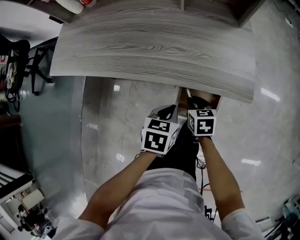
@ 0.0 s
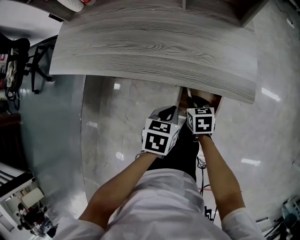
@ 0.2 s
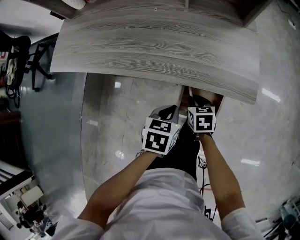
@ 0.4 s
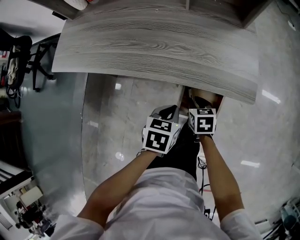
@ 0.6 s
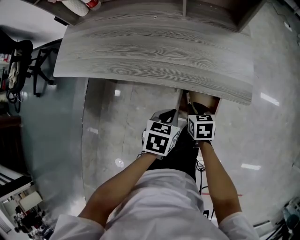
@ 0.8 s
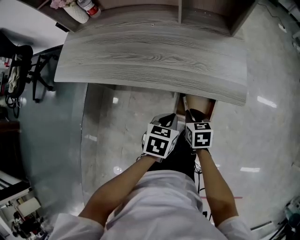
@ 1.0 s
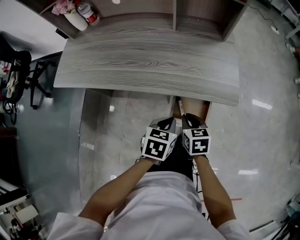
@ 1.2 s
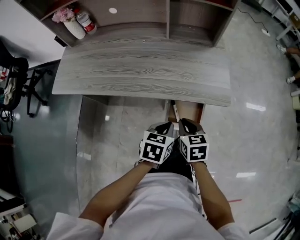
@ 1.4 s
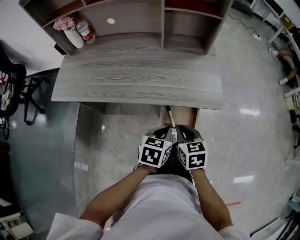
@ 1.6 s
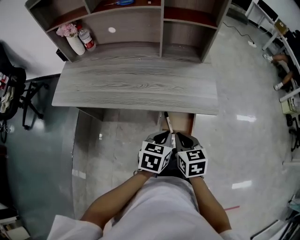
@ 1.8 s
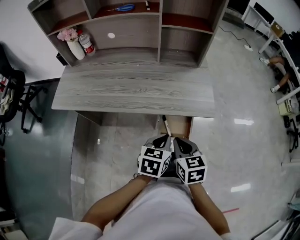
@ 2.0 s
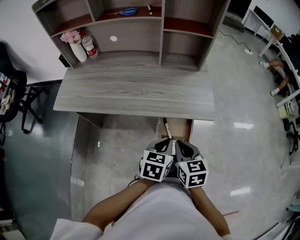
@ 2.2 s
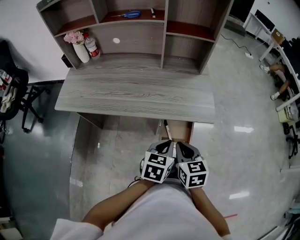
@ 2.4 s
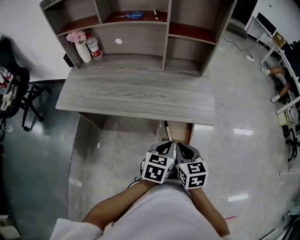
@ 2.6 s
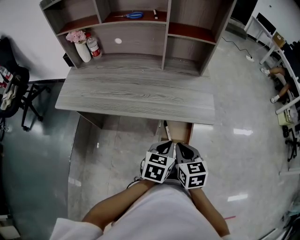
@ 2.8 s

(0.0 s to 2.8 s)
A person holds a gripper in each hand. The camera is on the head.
0.0 s - 1.4 s: The left gripper shifts by approximately 5 cm. Meanwhile the right gripper shifts some 10 cm upward and backward.
1.4 s - 2.8 s: The right gripper shifts some 10 cm upward and backward. Meanwhile the left gripper goes approximately 10 cm upward.

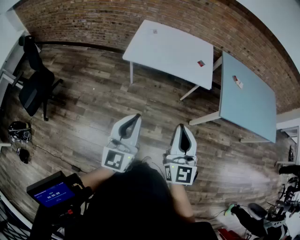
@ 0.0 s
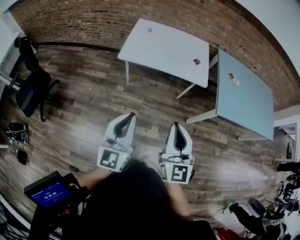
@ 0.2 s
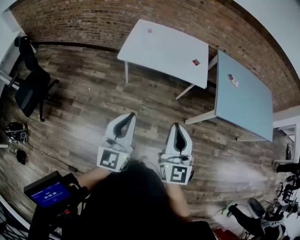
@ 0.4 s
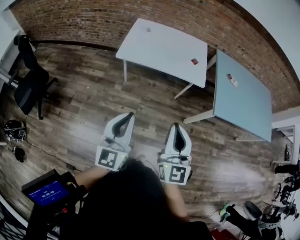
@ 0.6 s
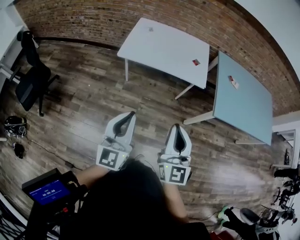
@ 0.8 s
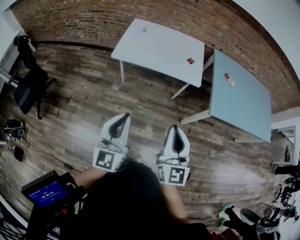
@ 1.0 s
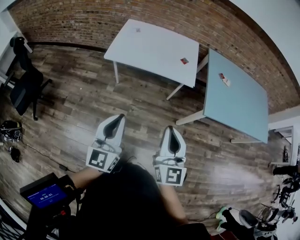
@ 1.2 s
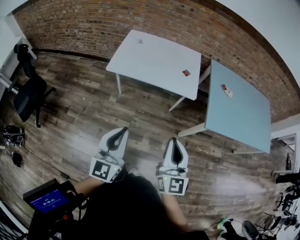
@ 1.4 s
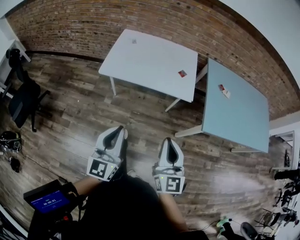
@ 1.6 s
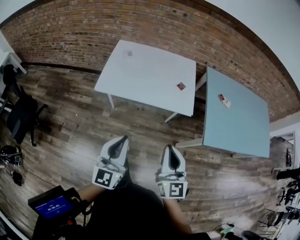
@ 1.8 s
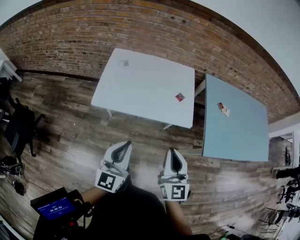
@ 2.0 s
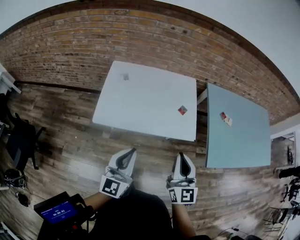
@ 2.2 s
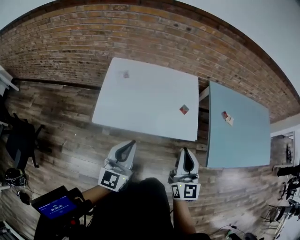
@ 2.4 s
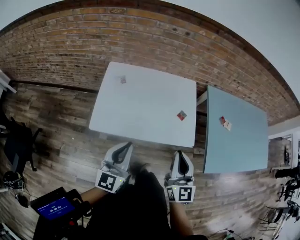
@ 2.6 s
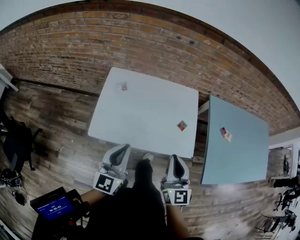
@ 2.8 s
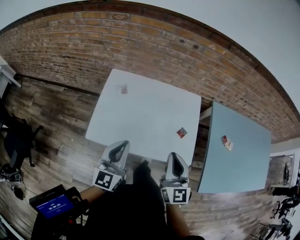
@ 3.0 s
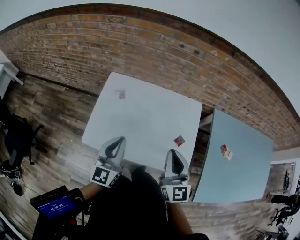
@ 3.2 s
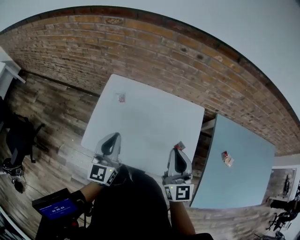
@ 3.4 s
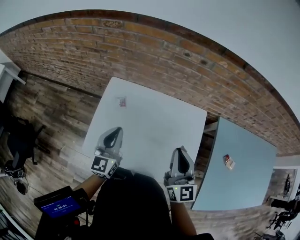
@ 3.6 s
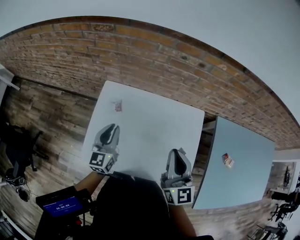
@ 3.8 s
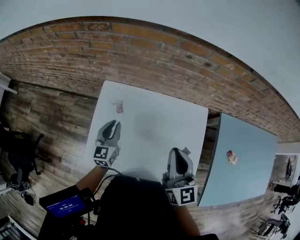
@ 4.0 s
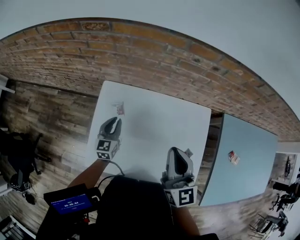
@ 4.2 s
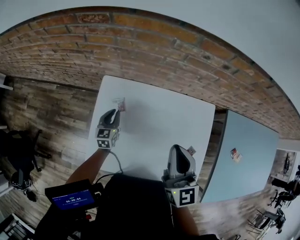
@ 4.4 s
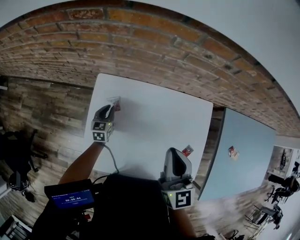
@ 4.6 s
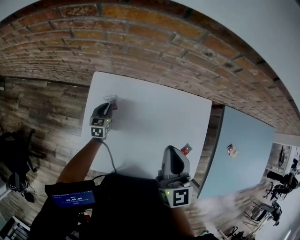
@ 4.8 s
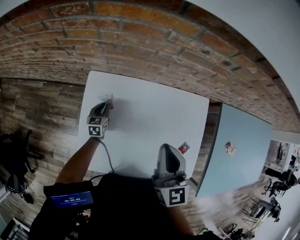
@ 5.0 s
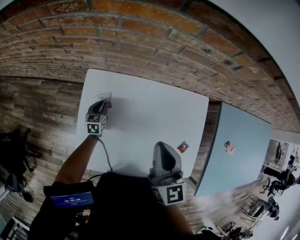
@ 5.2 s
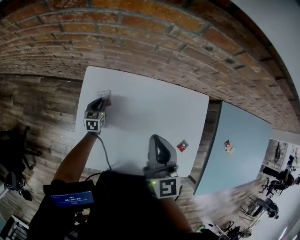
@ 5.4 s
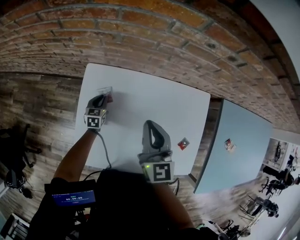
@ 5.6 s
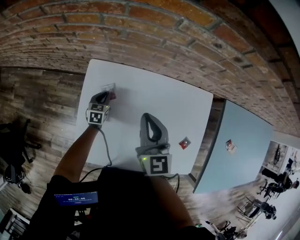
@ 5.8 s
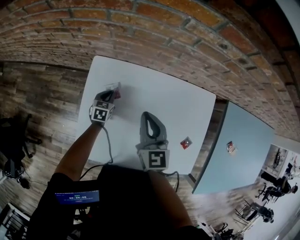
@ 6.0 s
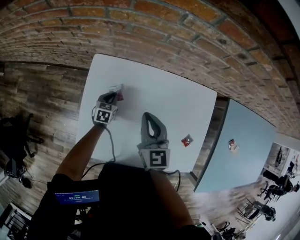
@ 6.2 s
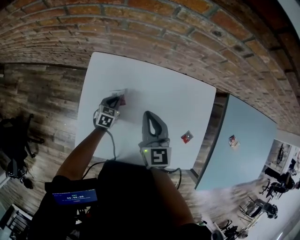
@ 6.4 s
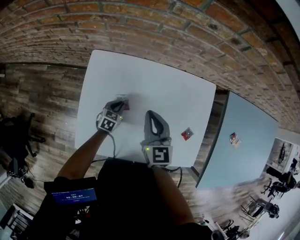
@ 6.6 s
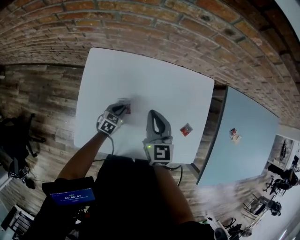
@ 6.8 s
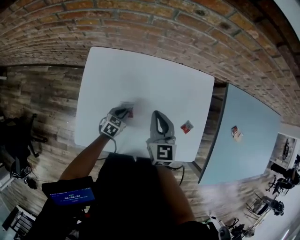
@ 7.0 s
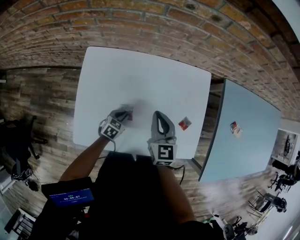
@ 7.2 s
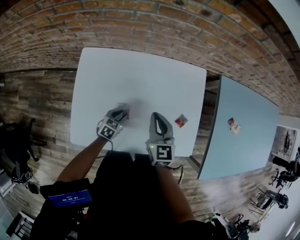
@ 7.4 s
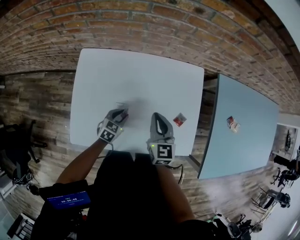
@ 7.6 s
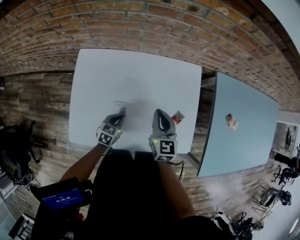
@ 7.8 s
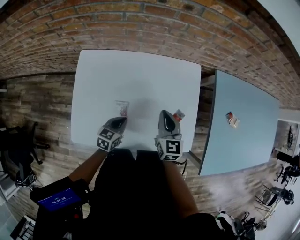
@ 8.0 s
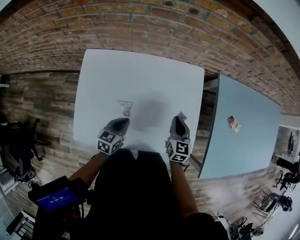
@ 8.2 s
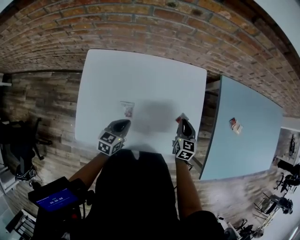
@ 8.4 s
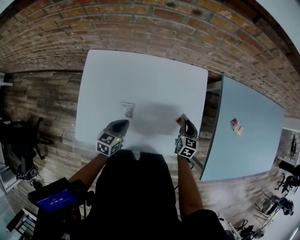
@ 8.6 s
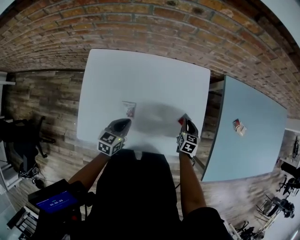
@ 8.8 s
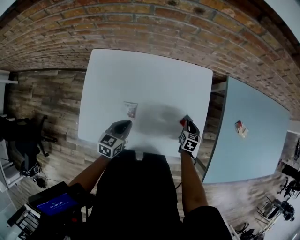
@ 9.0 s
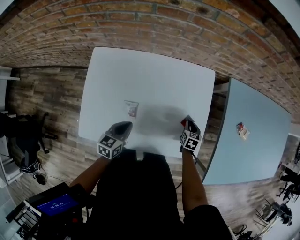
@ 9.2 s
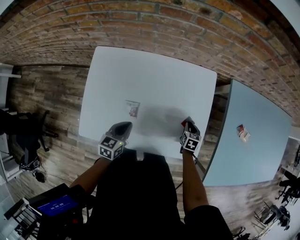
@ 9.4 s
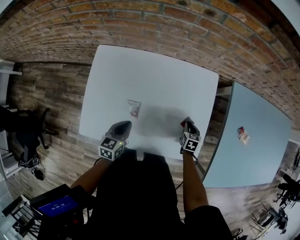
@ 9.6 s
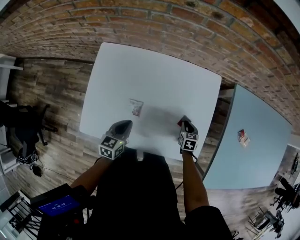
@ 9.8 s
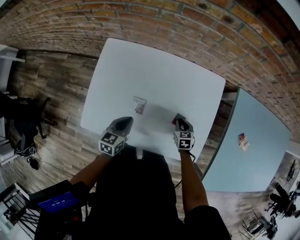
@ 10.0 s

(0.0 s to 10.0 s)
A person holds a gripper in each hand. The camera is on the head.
0.0 s - 1.4 s: The two grippers go about 10 cm to the right.
1.4 s - 2.8 s: The grippers both shift forward by approximately 40 cm.
2.8 s - 4.2 s: The left gripper travels forward and downward by roughly 40 cm, and changes its angle by approximately 20 degrees; the right gripper is displaced forward by about 30 cm.
4.2 s - 5.8 s: The right gripper moves downward, forward and to the left, roughly 15 cm. The left gripper heads downward, covering approximately 20 cm, and changes its angle by roughly 30 degrees.
5.8 s - 7.2 s: The left gripper moves backward and to the right, approximately 25 cm, and rotates about 30 degrees. The right gripper goes approximately 15 cm to the right, backward and downward.
7.2 s - 8.6 s: The right gripper travels to the right and downward by some 25 cm, and swivels roughly 20 degrees. The left gripper shifts approximately 15 cm upward, and swivels approximately 20 degrees.
8.6 s - 10.0 s: The right gripper is displaced downward and to the left by about 10 cm, and swivels roughly 30 degrees.

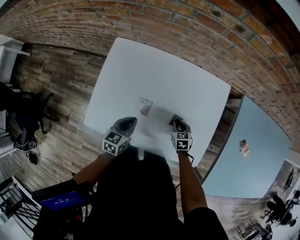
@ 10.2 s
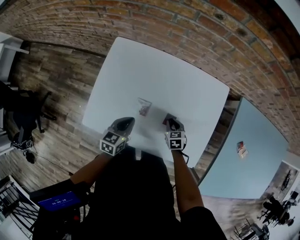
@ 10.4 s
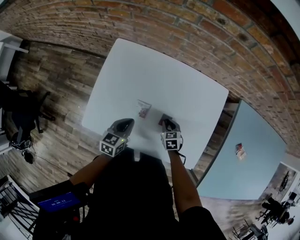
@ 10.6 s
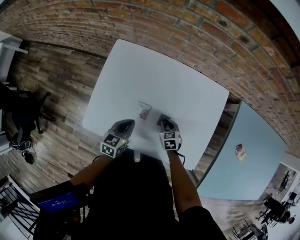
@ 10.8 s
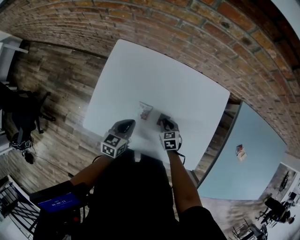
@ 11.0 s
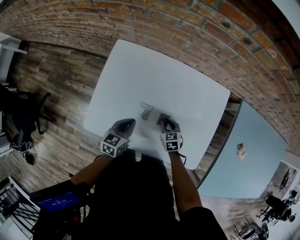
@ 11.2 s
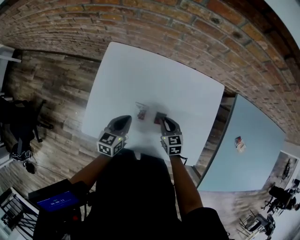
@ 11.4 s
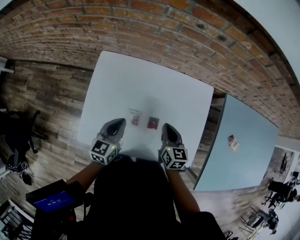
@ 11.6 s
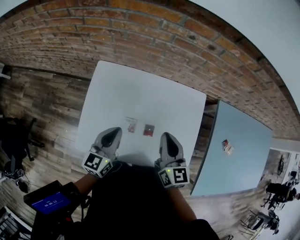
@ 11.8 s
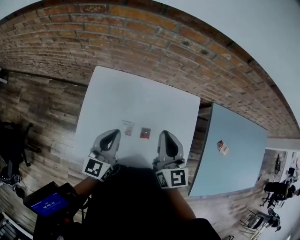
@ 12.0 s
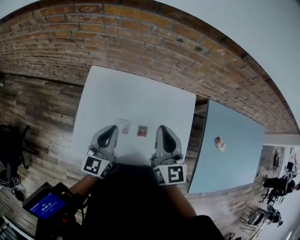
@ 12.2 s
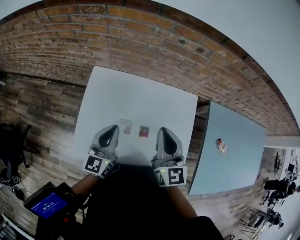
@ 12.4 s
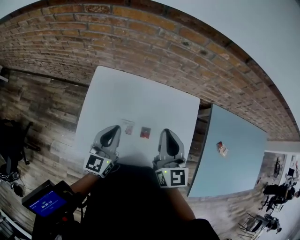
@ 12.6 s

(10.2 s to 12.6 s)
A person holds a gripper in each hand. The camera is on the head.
10.2 s - 11.4 s: The right gripper goes roughly 10 cm to the left and upward. Meanwhile the left gripper ends up roughly 5 cm from where it was.
11.4 s - 12.6 s: The left gripper heads upward, covering some 15 cm, and rotates some 30 degrees, while the right gripper shifts roughly 30 cm upward, and tilts its fingers roughly 40 degrees upward.

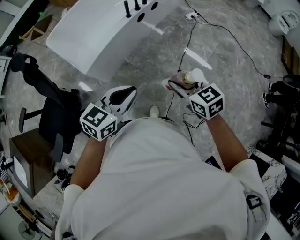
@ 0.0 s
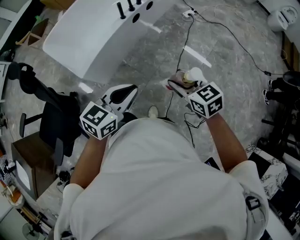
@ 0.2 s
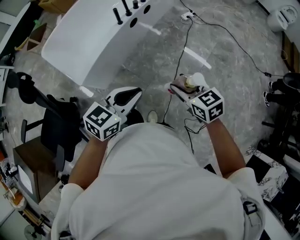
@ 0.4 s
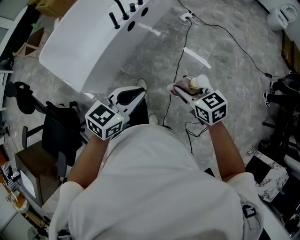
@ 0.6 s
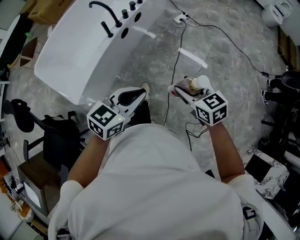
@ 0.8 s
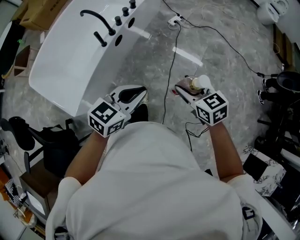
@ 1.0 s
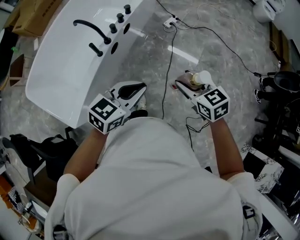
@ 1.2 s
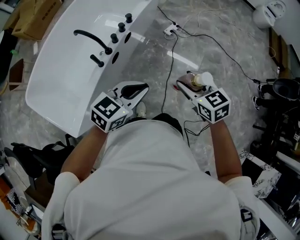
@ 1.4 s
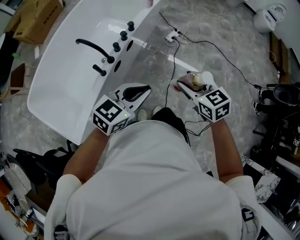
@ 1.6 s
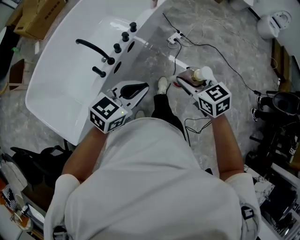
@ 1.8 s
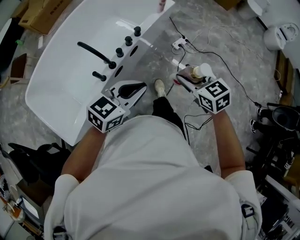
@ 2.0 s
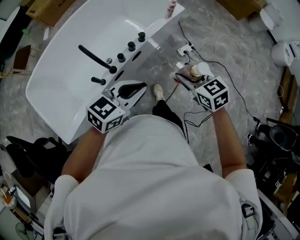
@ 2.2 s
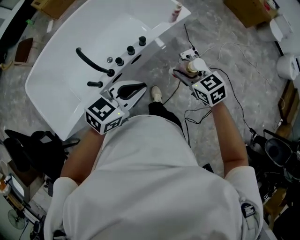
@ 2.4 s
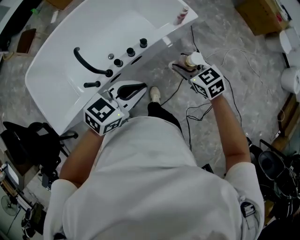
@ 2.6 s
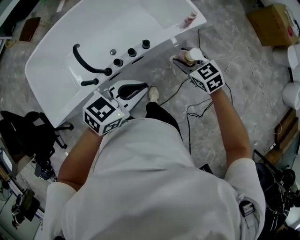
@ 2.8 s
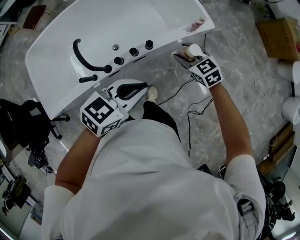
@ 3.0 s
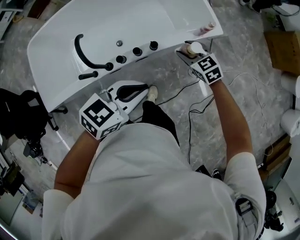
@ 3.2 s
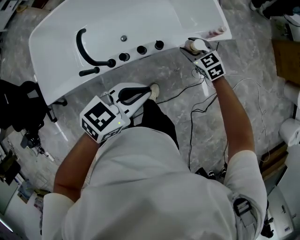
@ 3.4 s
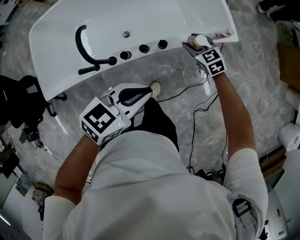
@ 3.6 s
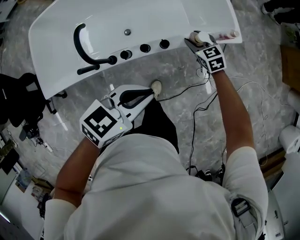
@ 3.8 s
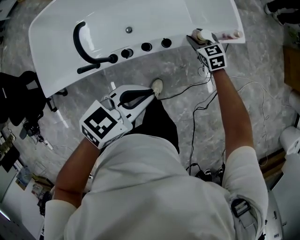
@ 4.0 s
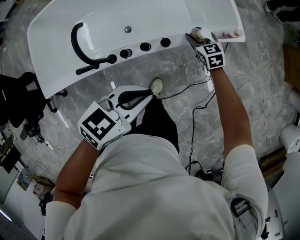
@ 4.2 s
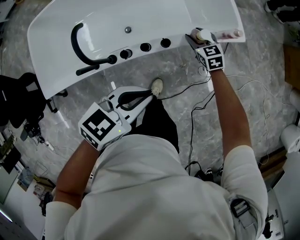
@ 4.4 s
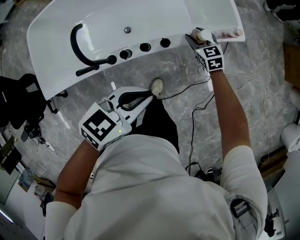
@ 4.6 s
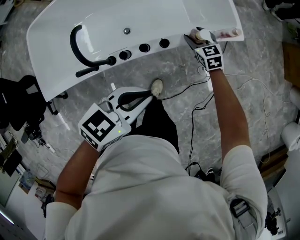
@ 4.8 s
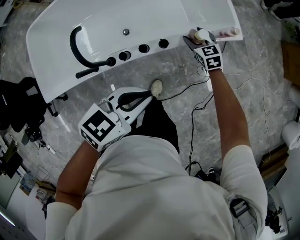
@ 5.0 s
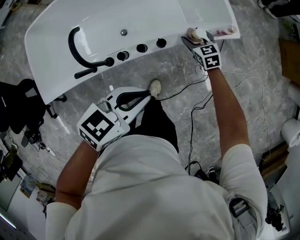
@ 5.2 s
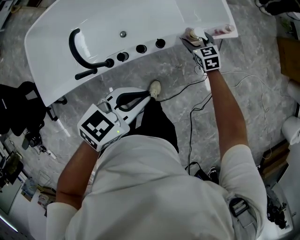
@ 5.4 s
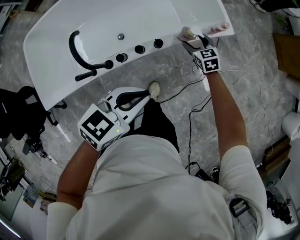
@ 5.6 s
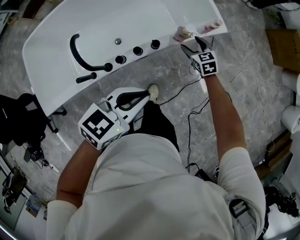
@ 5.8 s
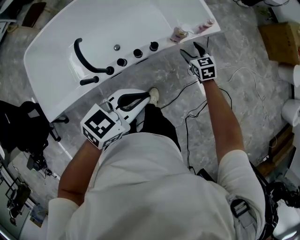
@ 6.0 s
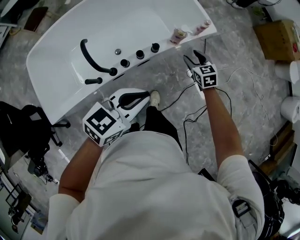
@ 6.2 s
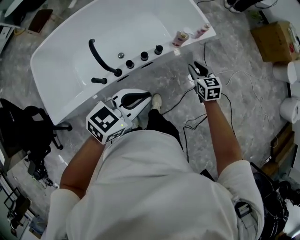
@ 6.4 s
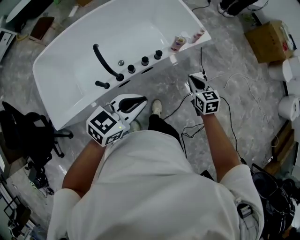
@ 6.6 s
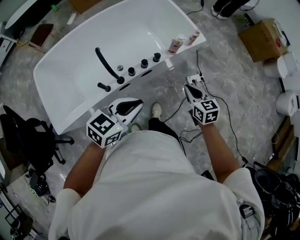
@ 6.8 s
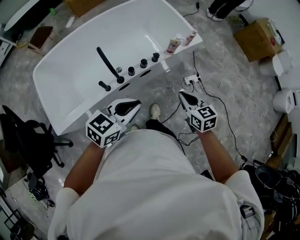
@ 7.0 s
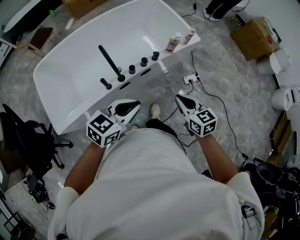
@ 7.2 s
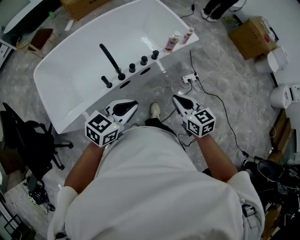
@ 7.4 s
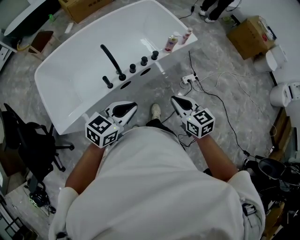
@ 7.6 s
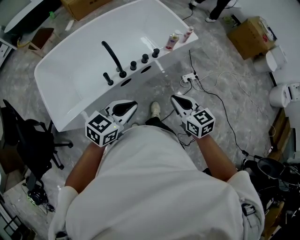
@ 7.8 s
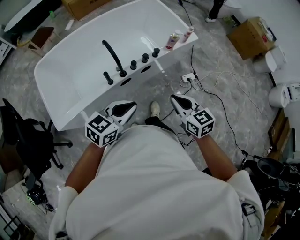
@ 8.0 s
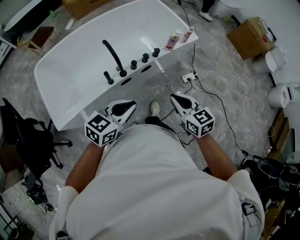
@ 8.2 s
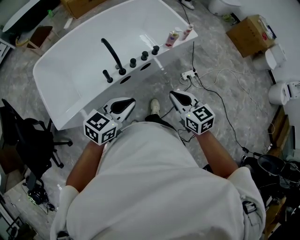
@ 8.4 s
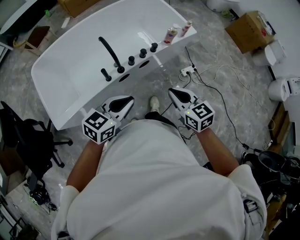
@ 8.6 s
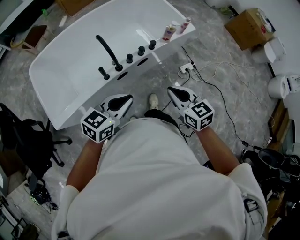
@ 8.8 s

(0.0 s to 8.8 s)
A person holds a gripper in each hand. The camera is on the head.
0.0 s - 1.4 s: The two grippers go approximately 40 cm forward.
1.4 s - 3.0 s: The right gripper ends up roughly 50 cm from where it was, and rotates some 50 degrees. Meanwhile the left gripper shifts by some 35 cm, and changes its angle by about 30 degrees.
3.0 s - 4.4 s: The left gripper heads downward, covering some 5 cm; the right gripper goes about 20 cm downward and forward.
4.4 s - 5.8 s: The right gripper shifts some 5 cm to the right.
5.8 s - 7.4 s: The right gripper heads backward and upward, covering roughly 50 cm, turns by about 20 degrees, and closes. The left gripper moves backward and to the left, roughly 25 cm.
7.4 s - 8.8 s: The grippers move only a little.
